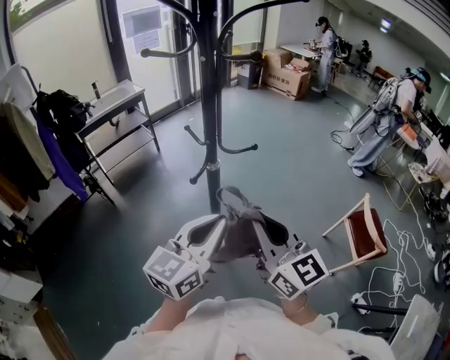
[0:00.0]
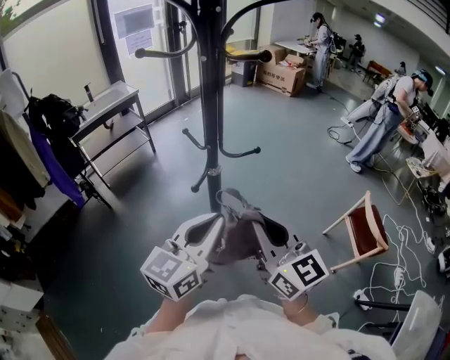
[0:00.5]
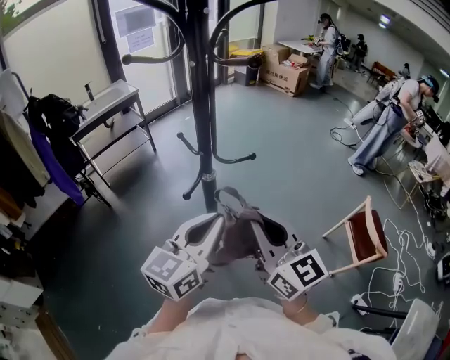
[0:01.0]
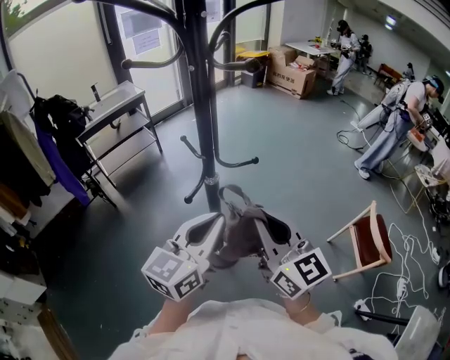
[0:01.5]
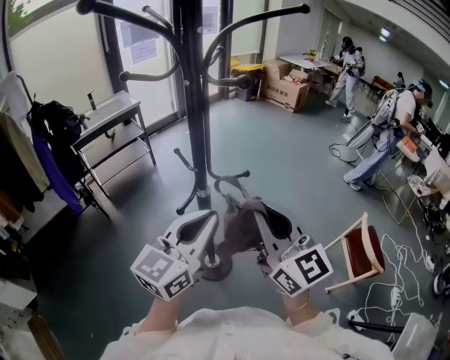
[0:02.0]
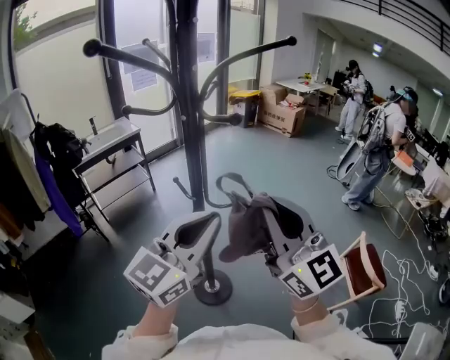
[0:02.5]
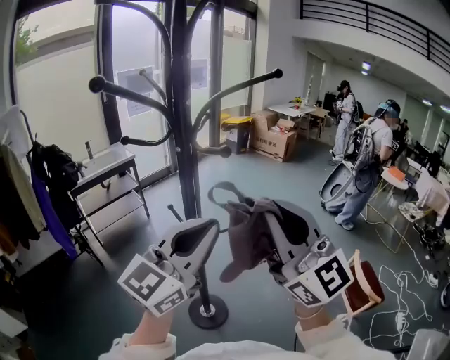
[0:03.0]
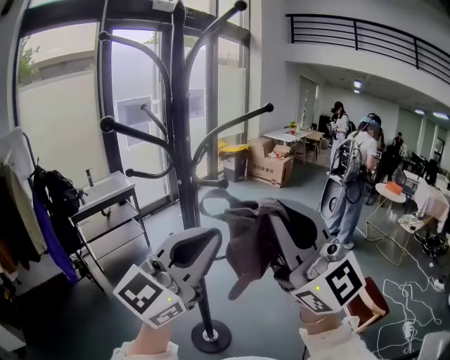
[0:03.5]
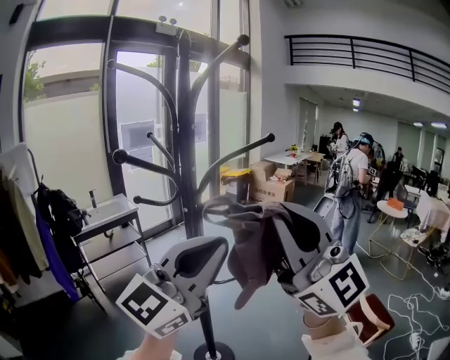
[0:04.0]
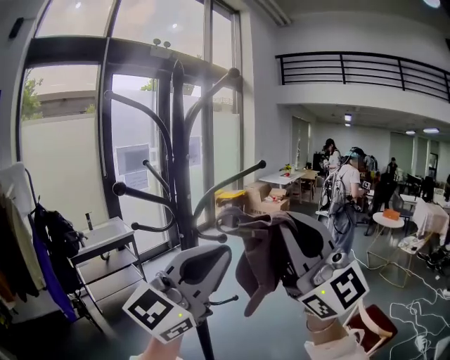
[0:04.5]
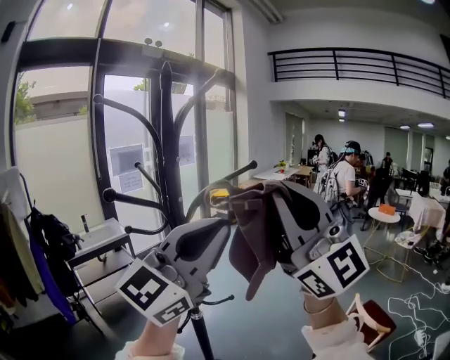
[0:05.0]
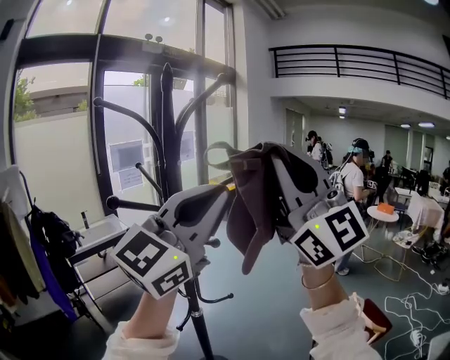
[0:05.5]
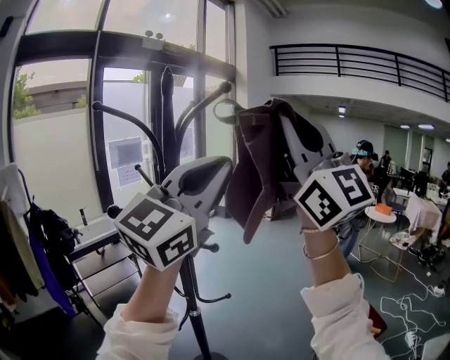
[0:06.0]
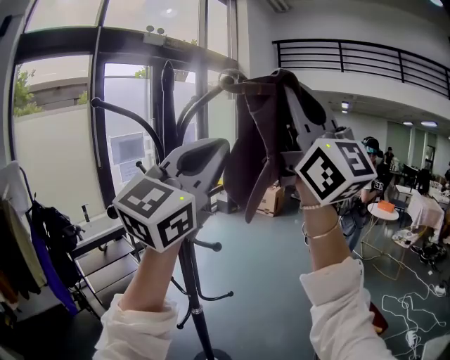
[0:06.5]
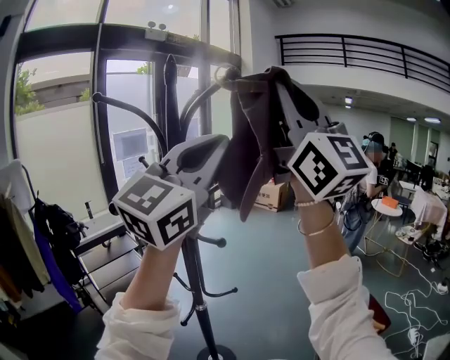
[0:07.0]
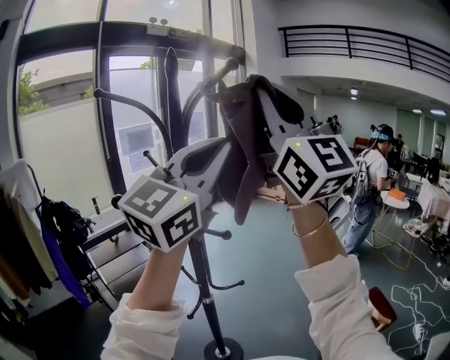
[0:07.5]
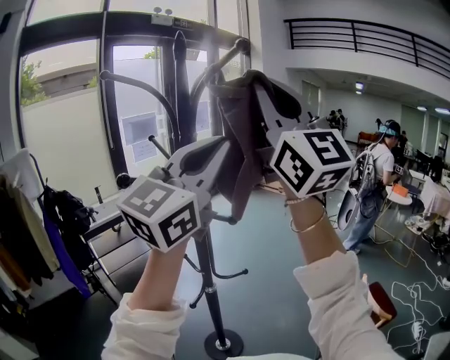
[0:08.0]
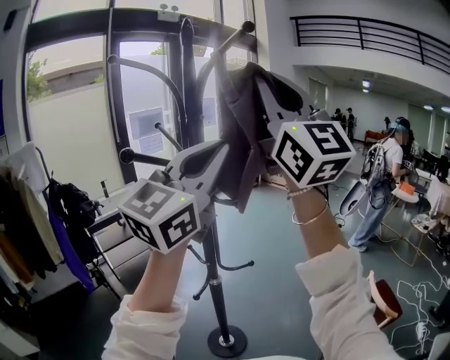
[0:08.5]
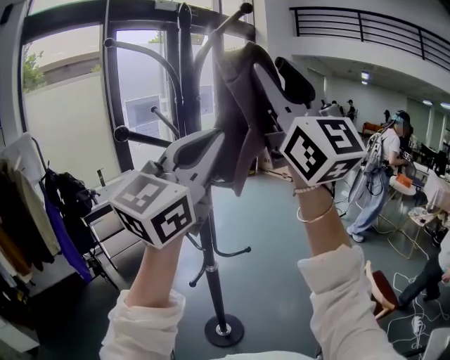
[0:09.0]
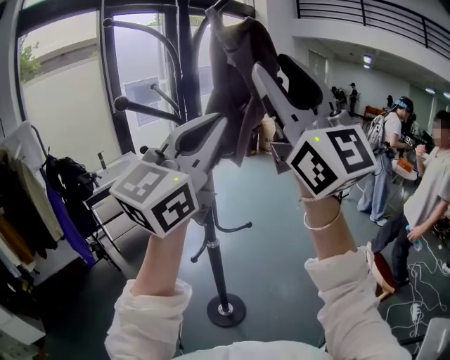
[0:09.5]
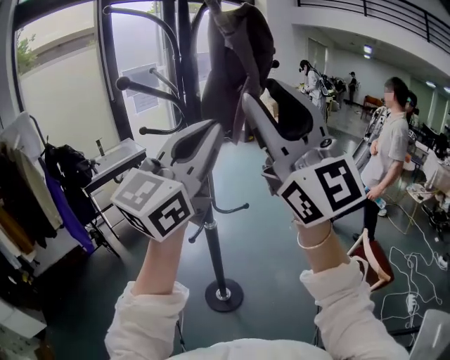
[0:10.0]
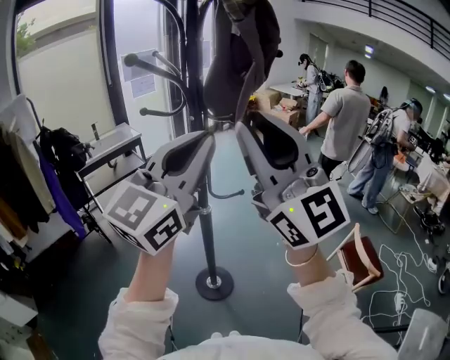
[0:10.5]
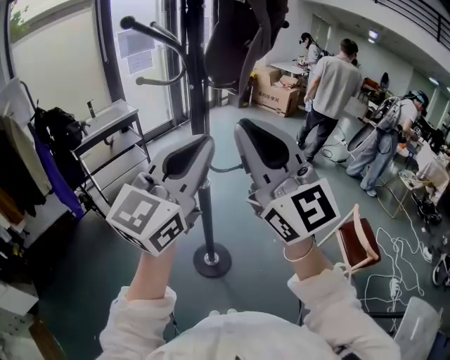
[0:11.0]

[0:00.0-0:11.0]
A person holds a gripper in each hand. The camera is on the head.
0:00.0 to 0:02.0: The right gripper travels forward and upward by roughly 10 cm, while the left gripper shifts approximately 10 cm forward.
0:02.0 to 0:03.5: The grippers both shift upward by some 20 cm. The left gripper turns by some 30 degrees. The right gripper turns by some 30 degrees.
0:03.5 to 0:05.5: Both grippers travel together upward, roughly 20 cm.
0:05.5 to 0:07.5: The right gripper is displaced upward and forward by about 10 cm. The left gripper is displaced forward by about 5 cm.
0:07.5 to 0:09.0: The grippers both shift downward by roughly 5 cm. The right gripper opens.
0:09.0 to 0:11.0: The right gripper travels downward by roughly 25 cm, rotates some 20 degrees, and closes. Meanwhile the left gripper heads downward and backward, covering approximately 20 cm.

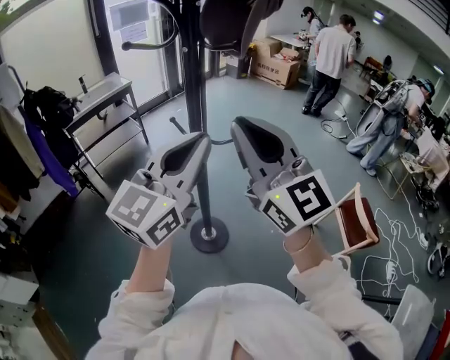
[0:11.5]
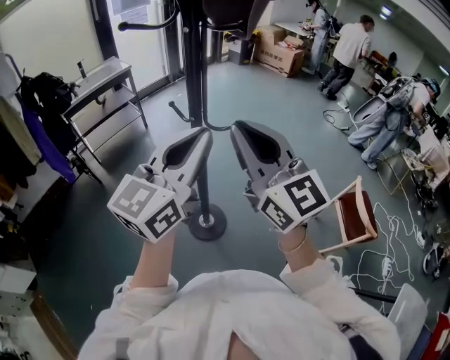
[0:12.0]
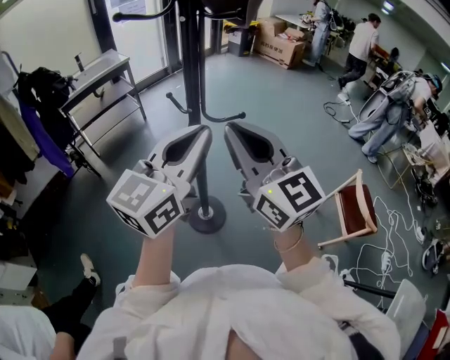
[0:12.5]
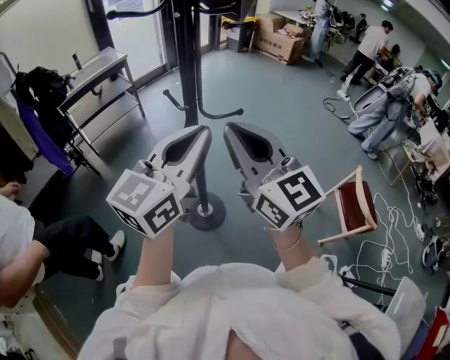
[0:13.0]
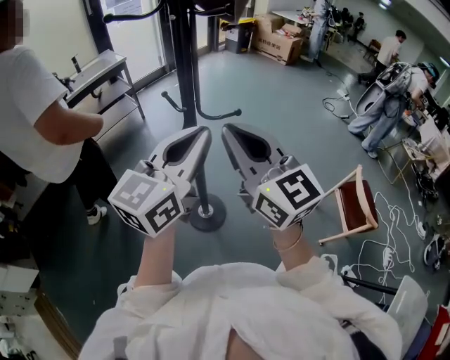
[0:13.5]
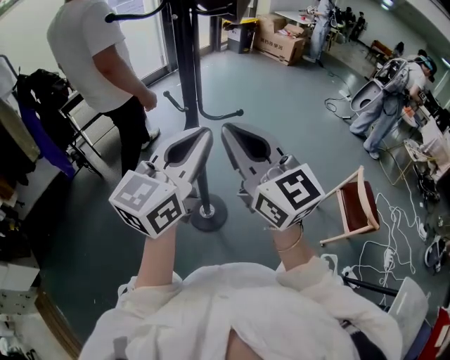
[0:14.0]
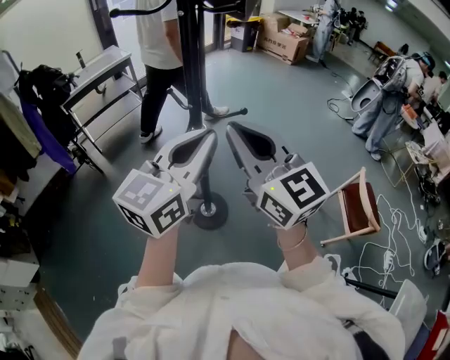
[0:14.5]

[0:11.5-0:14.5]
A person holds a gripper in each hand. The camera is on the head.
0:11.5 to 0:13.0: Both grippers travel together downward, approximately 10 cm.
0:13.0 to 0:14.5: Neither gripper changes place.

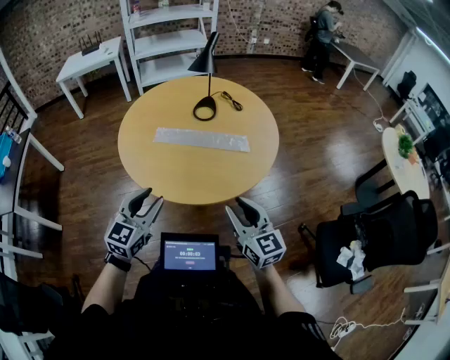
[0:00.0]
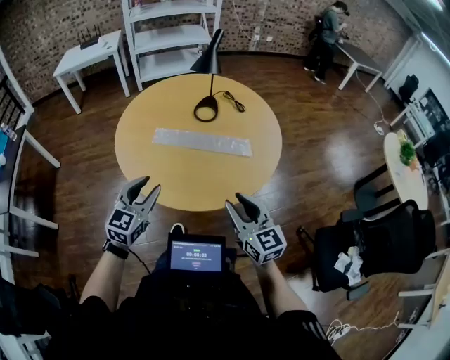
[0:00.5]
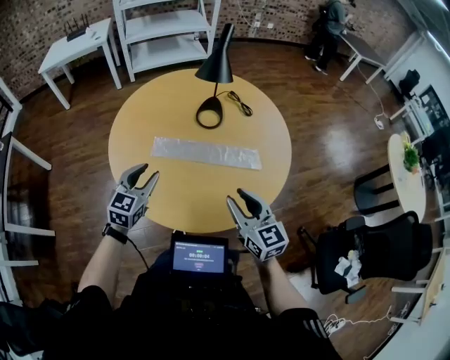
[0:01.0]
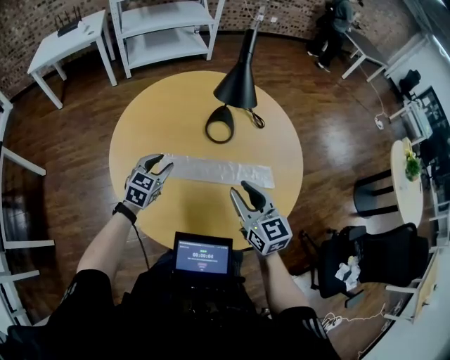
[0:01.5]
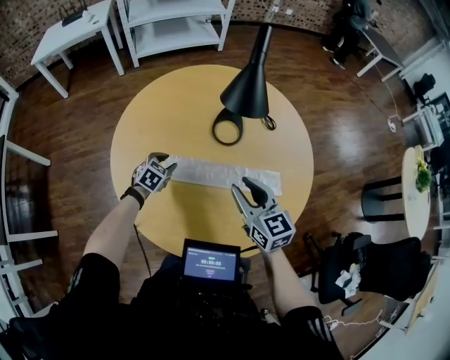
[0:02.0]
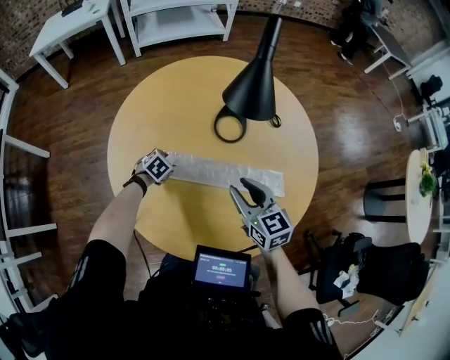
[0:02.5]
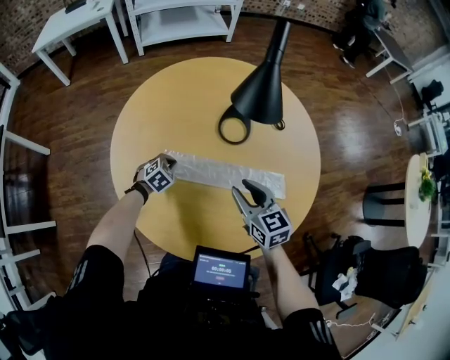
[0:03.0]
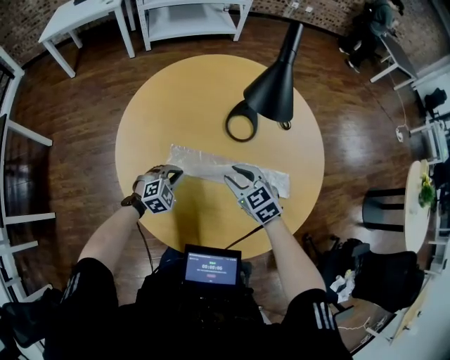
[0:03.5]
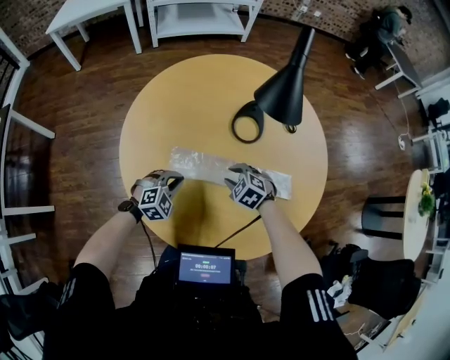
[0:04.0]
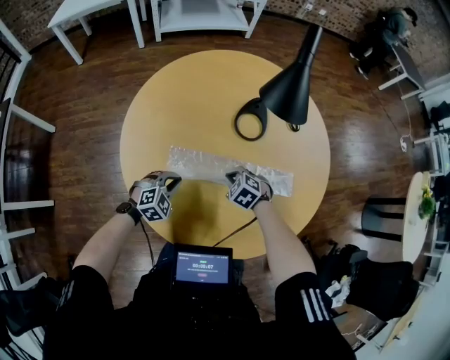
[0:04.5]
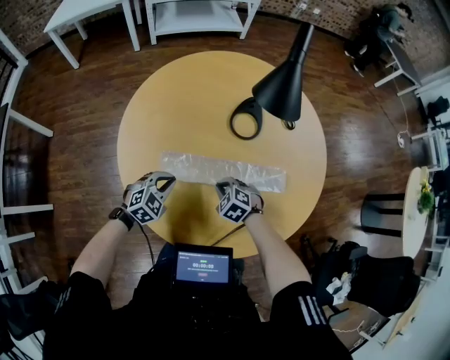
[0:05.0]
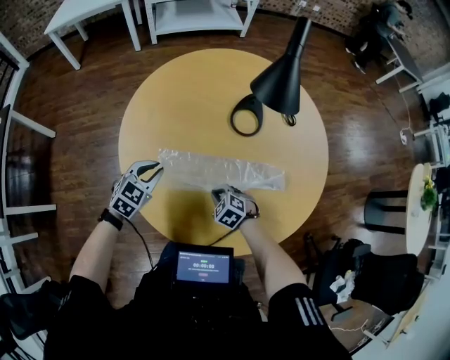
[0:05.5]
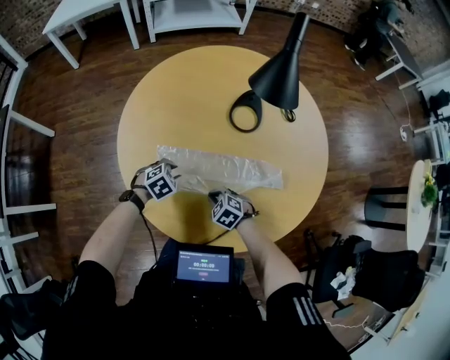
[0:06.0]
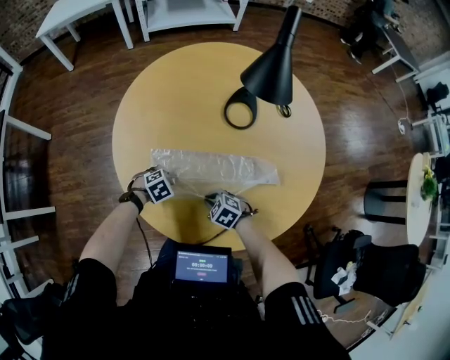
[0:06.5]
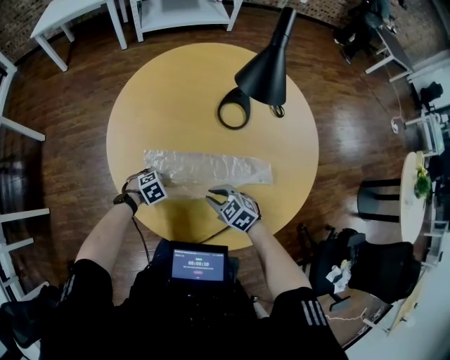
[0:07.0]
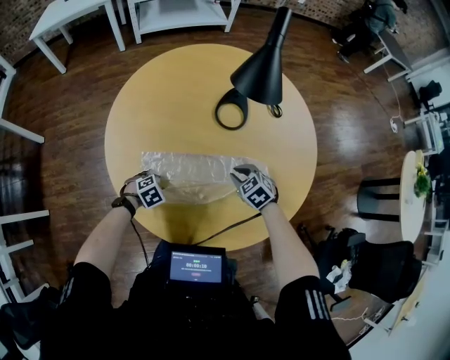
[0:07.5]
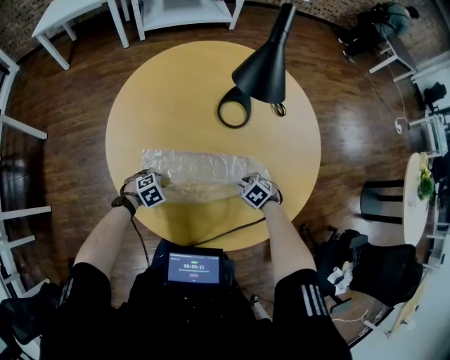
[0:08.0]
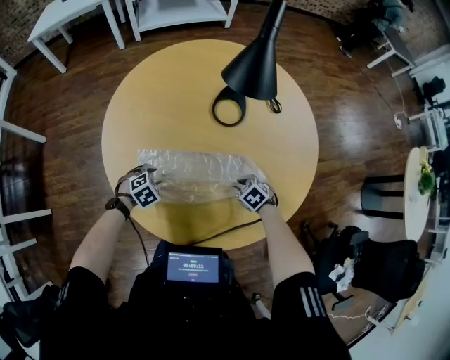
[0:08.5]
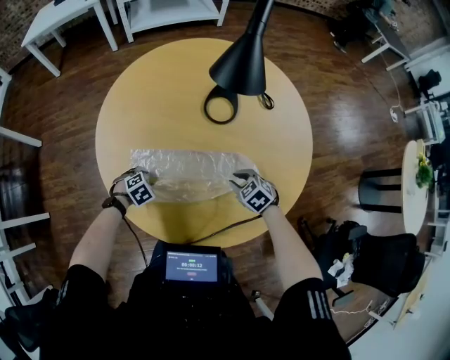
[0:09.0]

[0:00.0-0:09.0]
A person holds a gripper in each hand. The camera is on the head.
0:00.0 to 0:02.0: The pair of grippers is taken forward, roughly 50 cm. The left gripper is displaced downward by roughly 25 cm, and angles its fingers downward, by approximately 40 degrees.
0:02.0 to 0:04.5: The right gripper is displaced downward by some 25 cm, angles its fingers downward, by roughly 50 degrees, and closes up; the left gripper goes approximately 10 cm backward, rotates some 30 degrees, and closes its fingers.
0:04.5 to 0:07.0: The left gripper travels downward by approximately 10 cm, rotates some 30 degrees, and opens its fingers, while the right gripper changes place by some 10 cm.
0:07.0 to 0:09.0: The right gripper reaches approximately 10 cm downward, then returns.

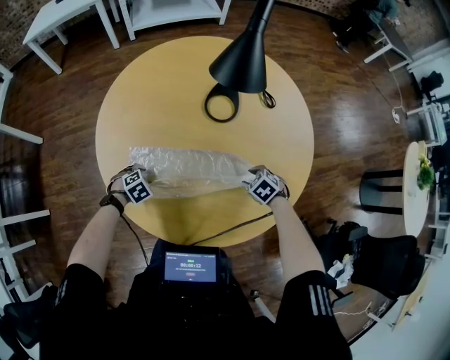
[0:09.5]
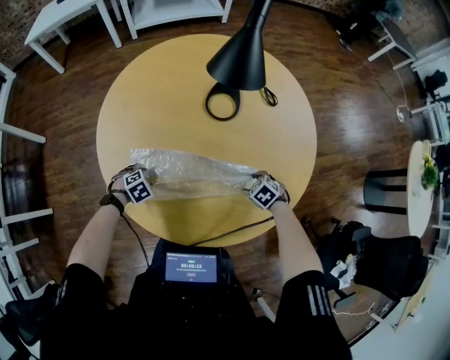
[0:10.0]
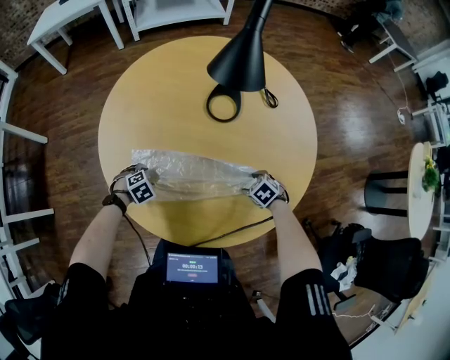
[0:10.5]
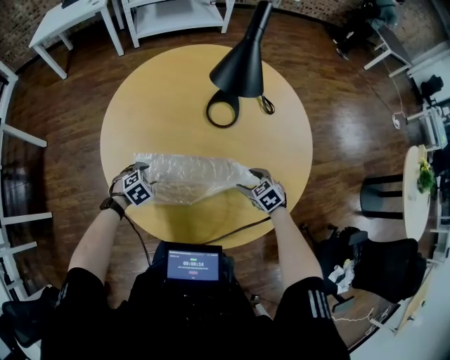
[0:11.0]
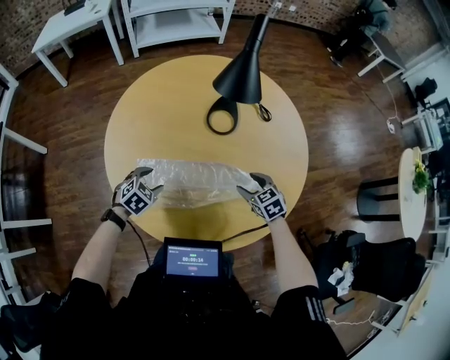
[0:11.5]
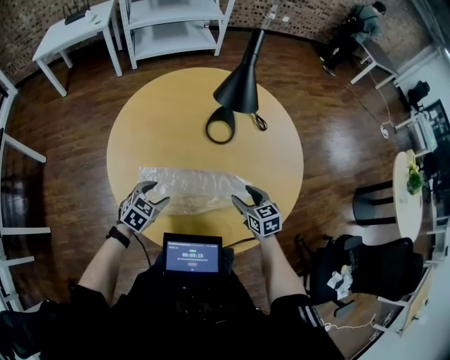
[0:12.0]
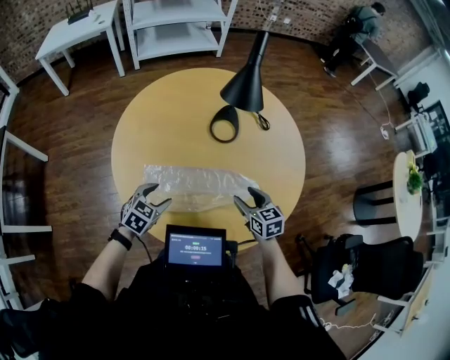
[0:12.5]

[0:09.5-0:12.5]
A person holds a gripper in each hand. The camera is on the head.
0:09.5 to 0:11.0: The left gripper moves upward, roughly 5 cm.
0:11.0 to 0:12.5: Both grippers move upward, approximately 10 cm. The right gripper turns by roughly 30 degrees. The left gripper swivels about 30 degrees.
